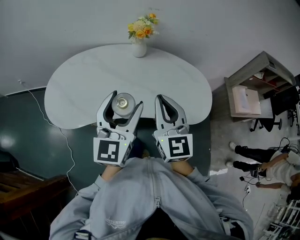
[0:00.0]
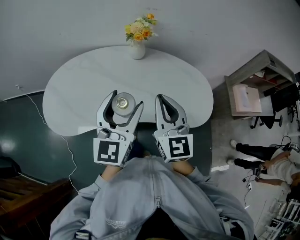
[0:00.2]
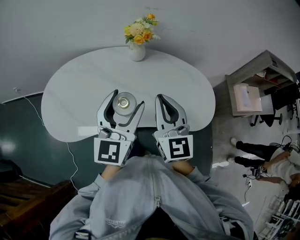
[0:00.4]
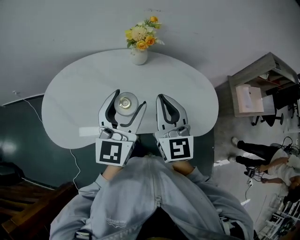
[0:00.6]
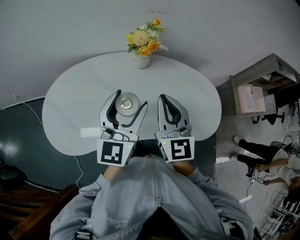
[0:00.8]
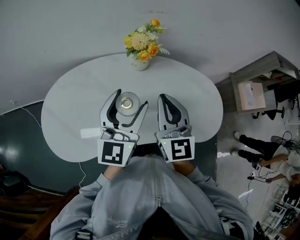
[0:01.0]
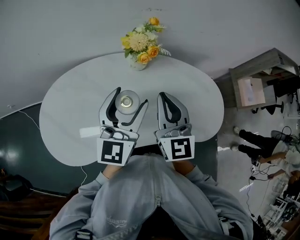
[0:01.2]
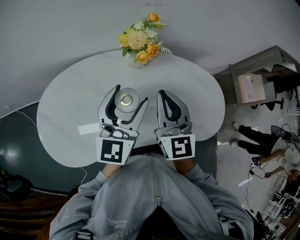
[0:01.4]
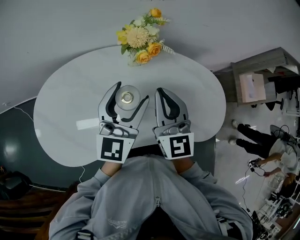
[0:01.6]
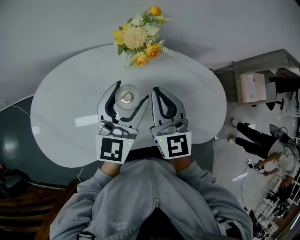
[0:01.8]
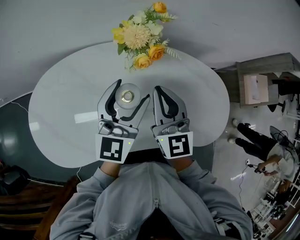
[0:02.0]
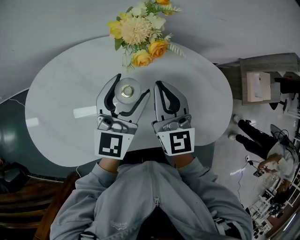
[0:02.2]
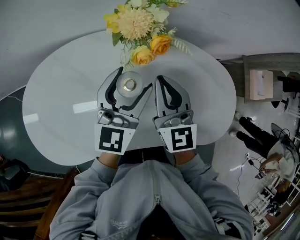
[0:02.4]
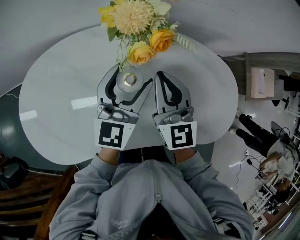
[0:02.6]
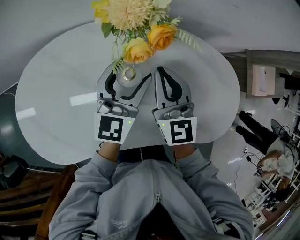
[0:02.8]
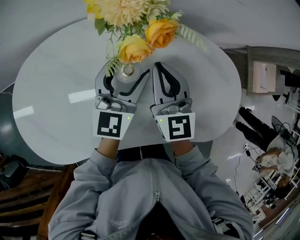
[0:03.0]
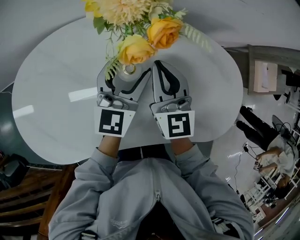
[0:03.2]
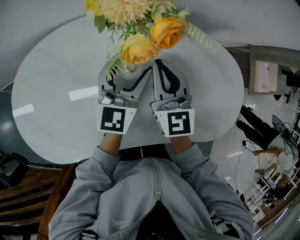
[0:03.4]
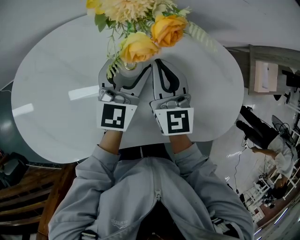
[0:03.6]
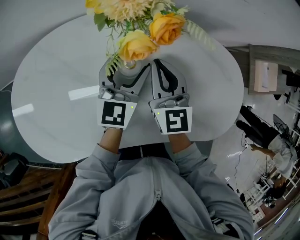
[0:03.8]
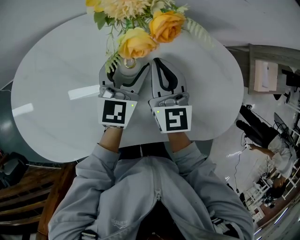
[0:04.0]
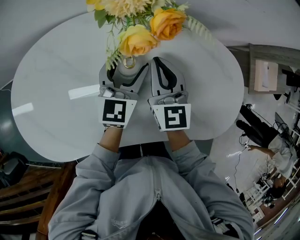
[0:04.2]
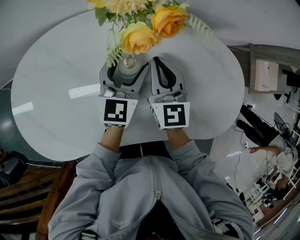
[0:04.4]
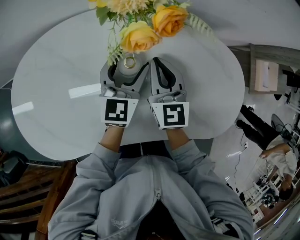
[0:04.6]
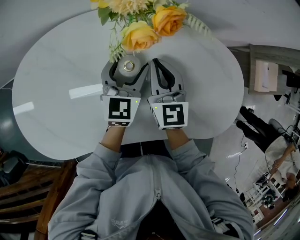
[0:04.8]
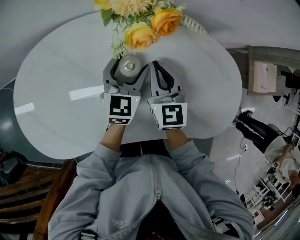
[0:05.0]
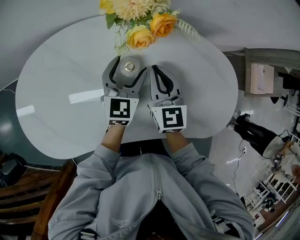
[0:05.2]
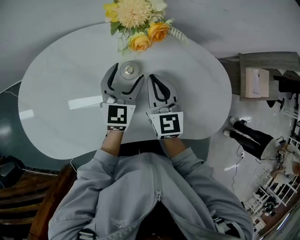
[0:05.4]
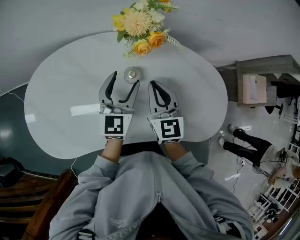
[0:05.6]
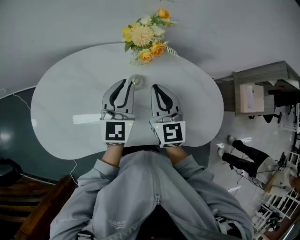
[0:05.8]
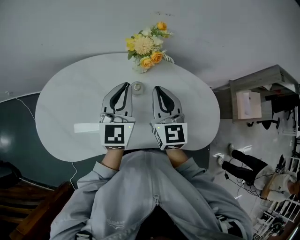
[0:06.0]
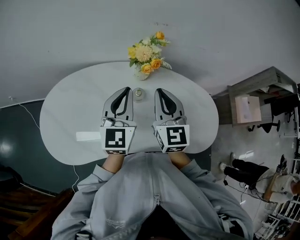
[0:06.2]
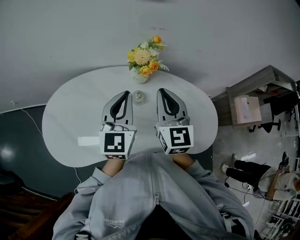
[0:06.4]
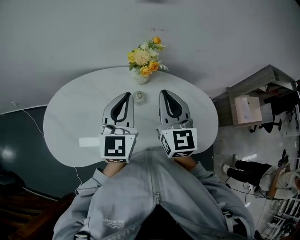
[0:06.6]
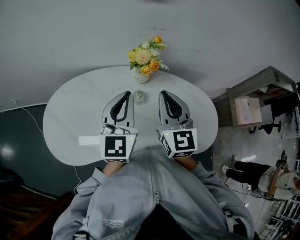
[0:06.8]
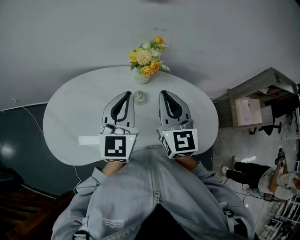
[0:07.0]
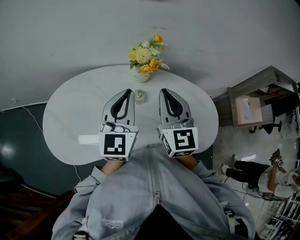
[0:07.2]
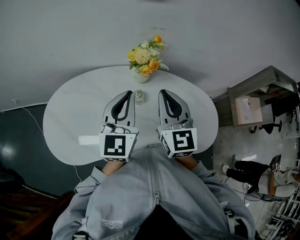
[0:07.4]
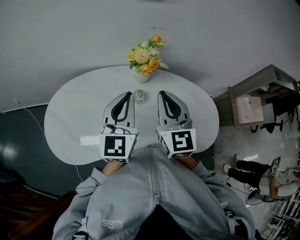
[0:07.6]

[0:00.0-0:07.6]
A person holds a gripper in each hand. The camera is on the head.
0:00.0 to 0:01.6: Both grippers move forward, about 25 cm.
0:01.6 to 0:03.0: The grippers both shift downward and forward by some 15 cm.
0:03.0 to 0:04.6: Both grippers move downward, about 5 cm.
0:04.6 to 0:06.0: The two grippers go about 20 cm upward. The left gripper closes.
0:06.0 to 0:07.6: Both grippers travel together upward, roughly 10 cm.

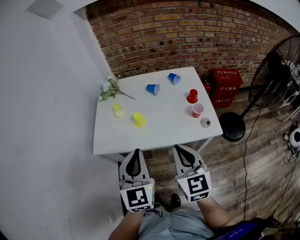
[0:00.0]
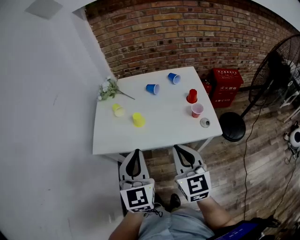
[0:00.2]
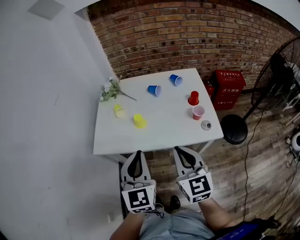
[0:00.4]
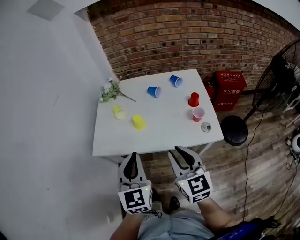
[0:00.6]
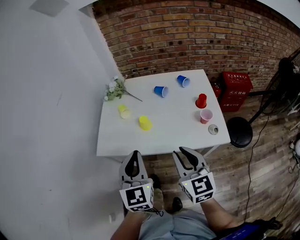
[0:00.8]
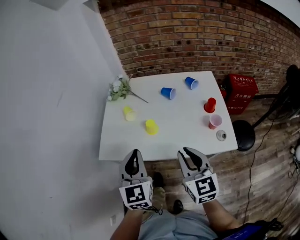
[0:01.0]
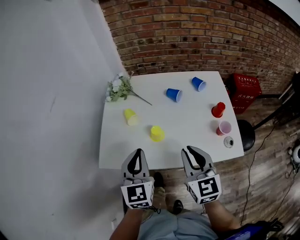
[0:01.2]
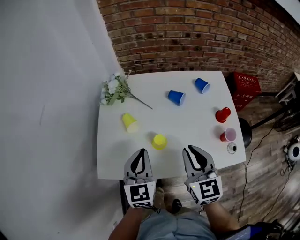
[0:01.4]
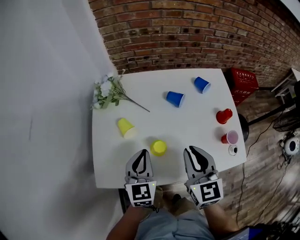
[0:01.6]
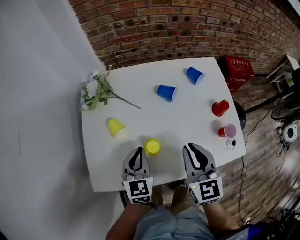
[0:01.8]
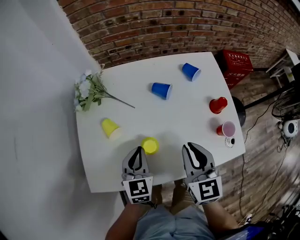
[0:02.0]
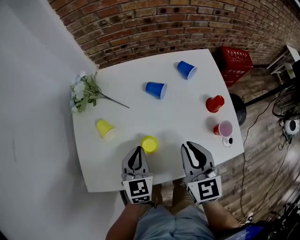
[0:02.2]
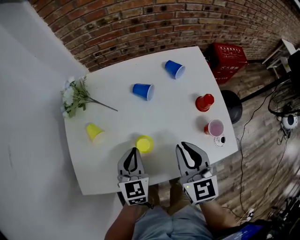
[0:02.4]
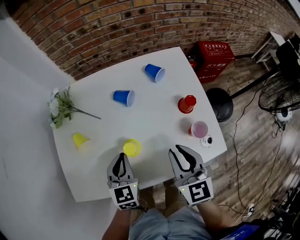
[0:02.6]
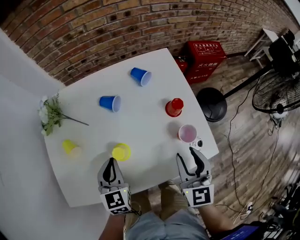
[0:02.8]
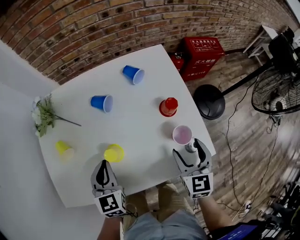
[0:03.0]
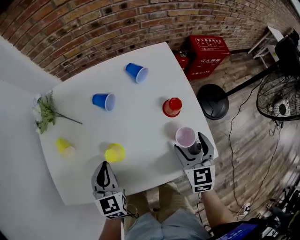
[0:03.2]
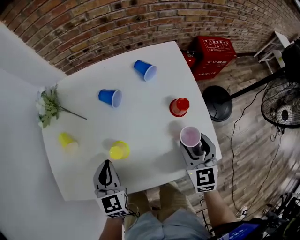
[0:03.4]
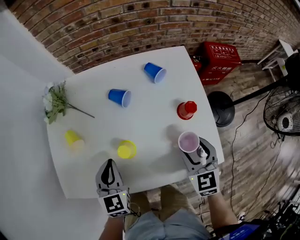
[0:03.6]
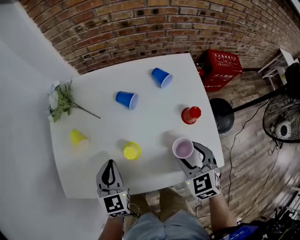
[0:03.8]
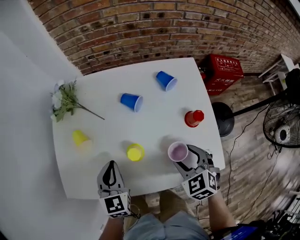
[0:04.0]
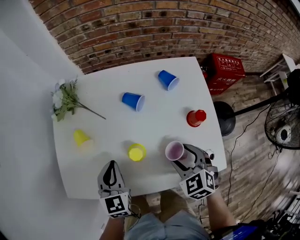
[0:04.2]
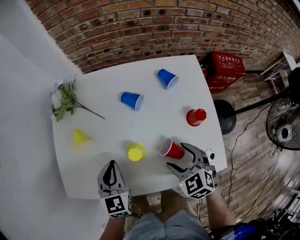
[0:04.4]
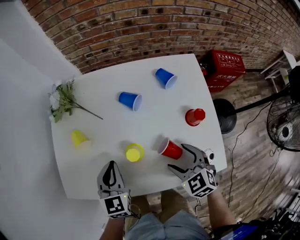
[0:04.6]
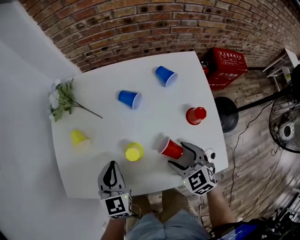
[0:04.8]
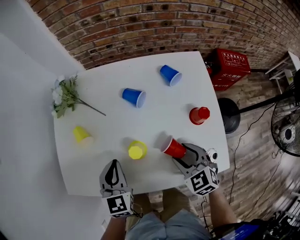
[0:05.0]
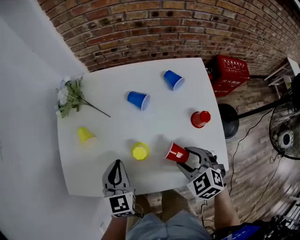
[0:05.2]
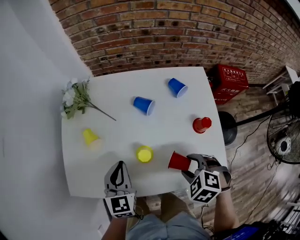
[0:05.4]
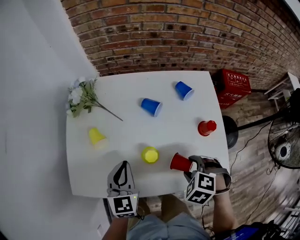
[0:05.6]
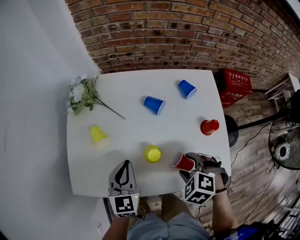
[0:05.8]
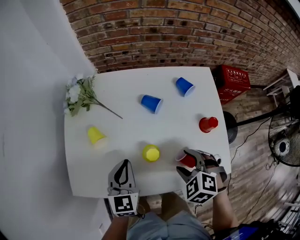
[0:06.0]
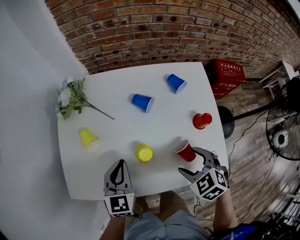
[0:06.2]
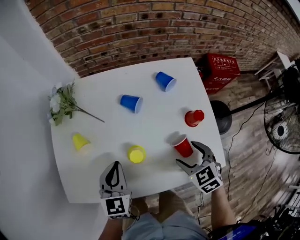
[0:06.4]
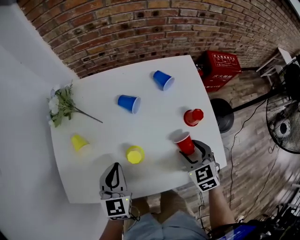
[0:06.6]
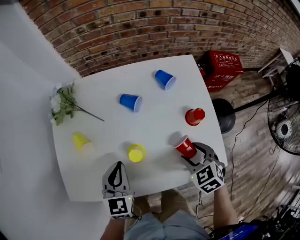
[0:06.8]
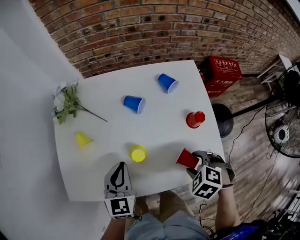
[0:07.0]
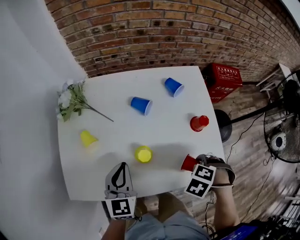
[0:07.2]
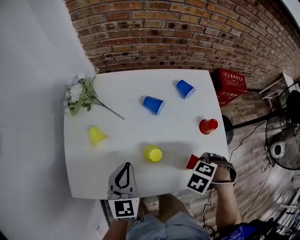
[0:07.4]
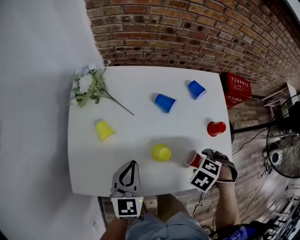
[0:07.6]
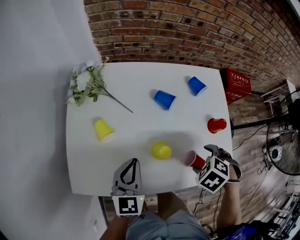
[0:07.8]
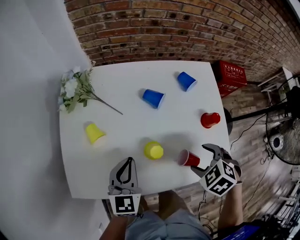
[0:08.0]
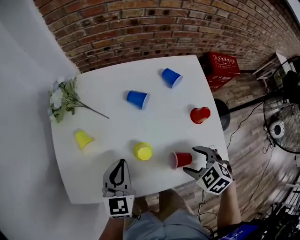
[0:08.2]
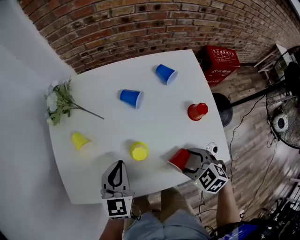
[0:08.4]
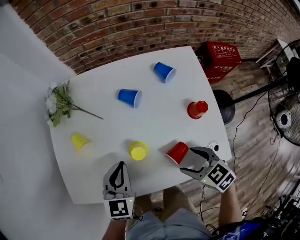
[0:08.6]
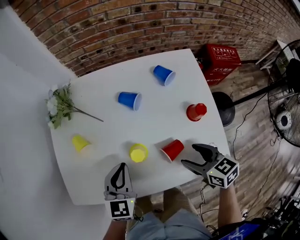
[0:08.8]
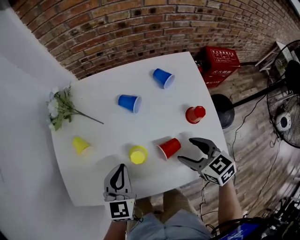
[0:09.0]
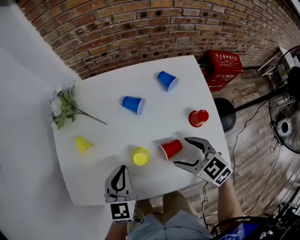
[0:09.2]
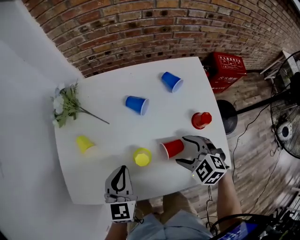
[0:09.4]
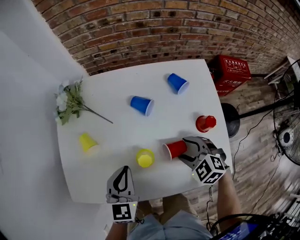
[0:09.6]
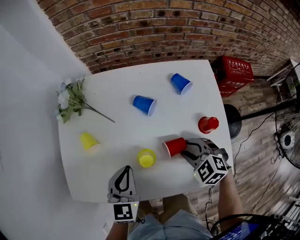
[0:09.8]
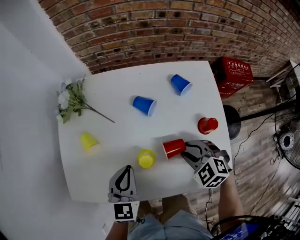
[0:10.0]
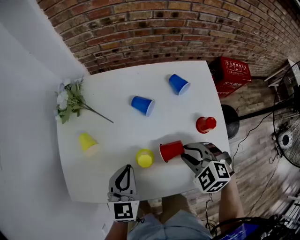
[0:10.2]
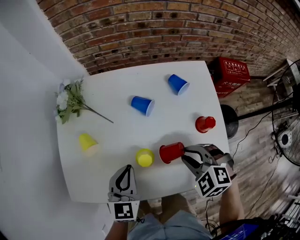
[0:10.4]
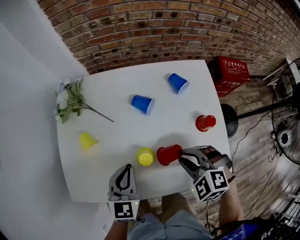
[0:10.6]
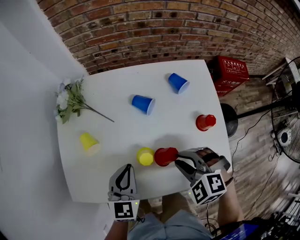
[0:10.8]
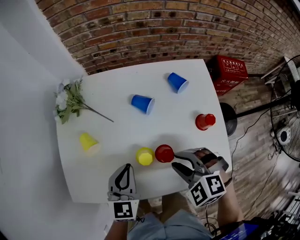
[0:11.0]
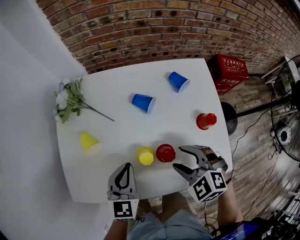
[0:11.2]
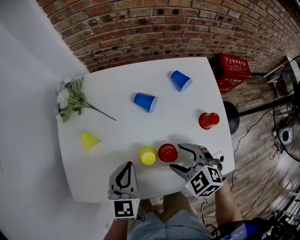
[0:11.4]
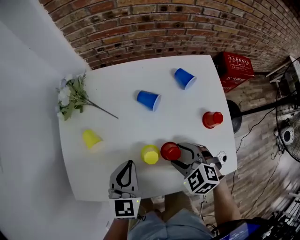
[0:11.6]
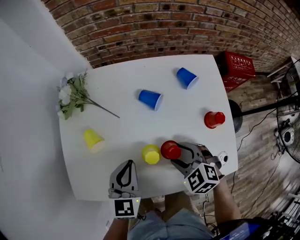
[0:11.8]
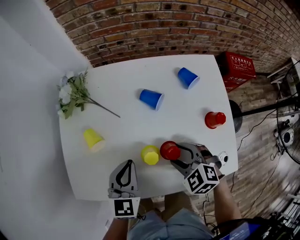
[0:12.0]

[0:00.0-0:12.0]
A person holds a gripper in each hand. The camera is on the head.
0:00.0 to 0:01.6: The right gripper moves forward, about 25 cm. The left gripper is displaced forward and downward by roughly 30 cm.
0:01.6 to 0:03.0: The left gripper shifts approximately 10 cm to the right and downward. The right gripper travels to the right and downward by roughly 30 cm, swivels about 20 degrees, and opens.
0:03.0 to 0:04.4: The left gripper is displaced to the left by some 5 cm. Meanwhile the right gripper shifts about 10 cm to the left, and turns by roughly 50 degrees.
0:04.4 to 0:06.0: The right gripper turns by some 20 degrees.
0:06.0 to 0:07.6: The right gripper swivels some 30 degrees.
0:07.6 to 0:09.0: The left gripper moves some 5 cm, while the right gripper tips its fingers upward by some 40 degrees.
0:09.0 to 0:10.4: The right gripper rotates around the line of its fingers by approximately 50 degrees, counterclockwise from behind, and closes its fingers.
0:10.4 to 0:12.0: The right gripper shifts approximately 10 cm to the left and downward, and opens its fingers.

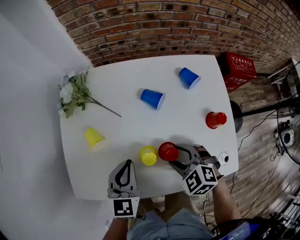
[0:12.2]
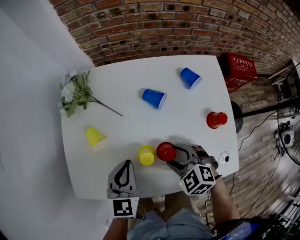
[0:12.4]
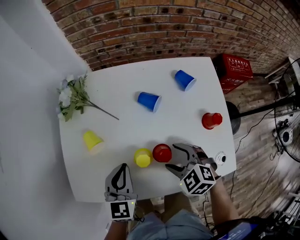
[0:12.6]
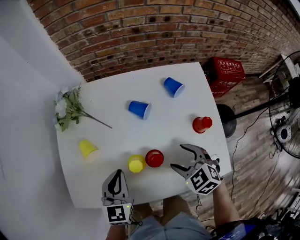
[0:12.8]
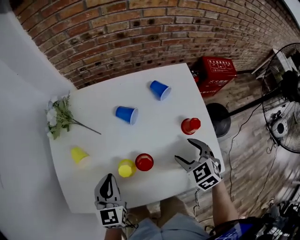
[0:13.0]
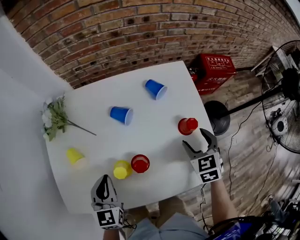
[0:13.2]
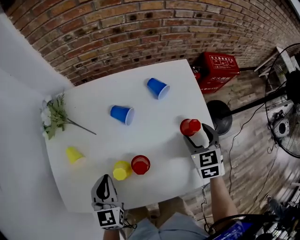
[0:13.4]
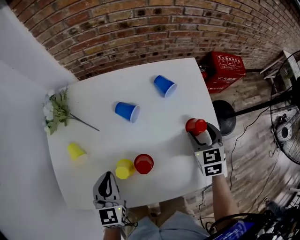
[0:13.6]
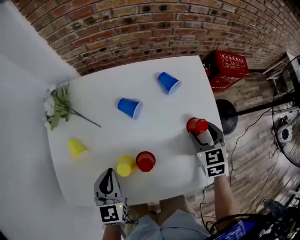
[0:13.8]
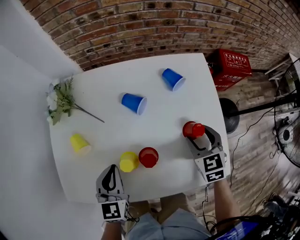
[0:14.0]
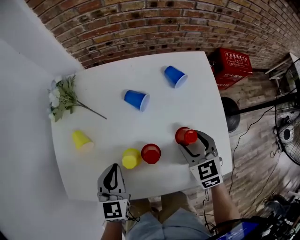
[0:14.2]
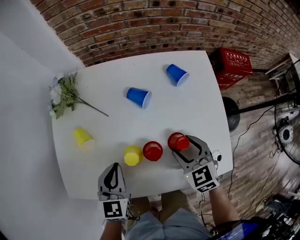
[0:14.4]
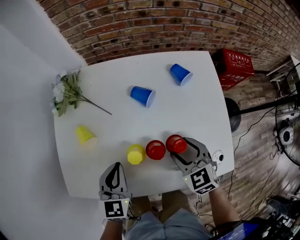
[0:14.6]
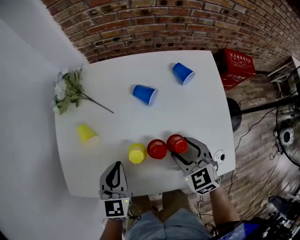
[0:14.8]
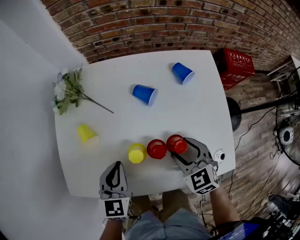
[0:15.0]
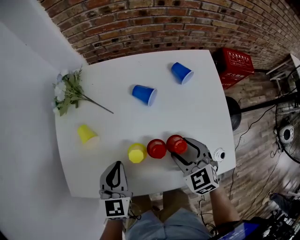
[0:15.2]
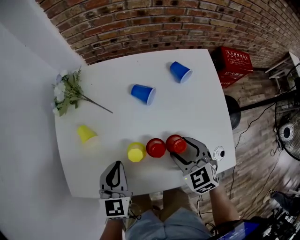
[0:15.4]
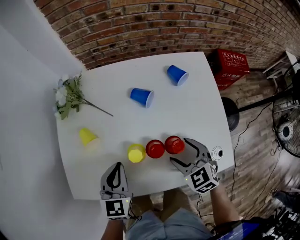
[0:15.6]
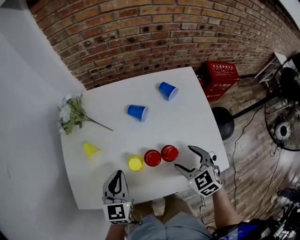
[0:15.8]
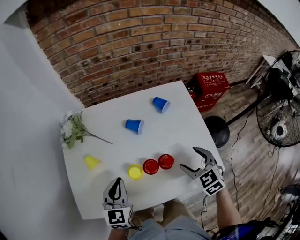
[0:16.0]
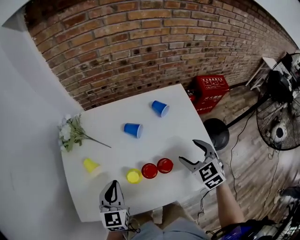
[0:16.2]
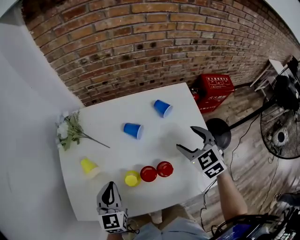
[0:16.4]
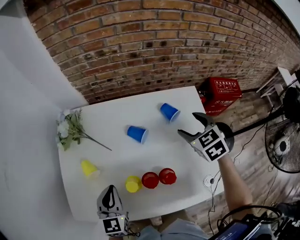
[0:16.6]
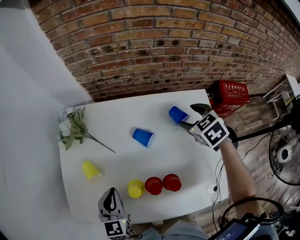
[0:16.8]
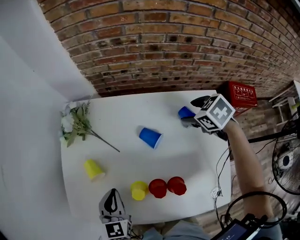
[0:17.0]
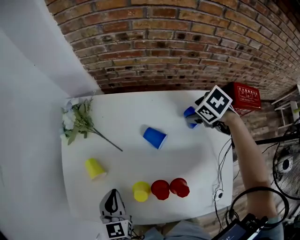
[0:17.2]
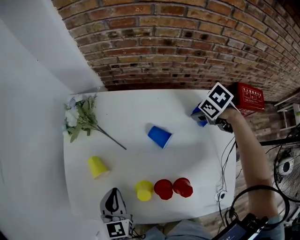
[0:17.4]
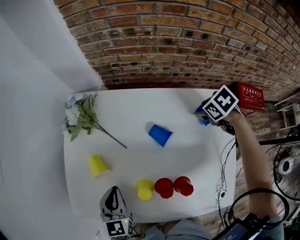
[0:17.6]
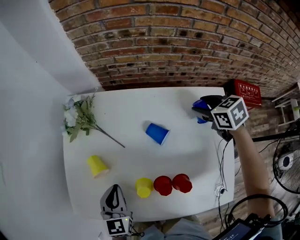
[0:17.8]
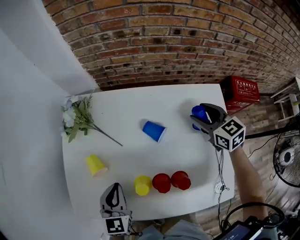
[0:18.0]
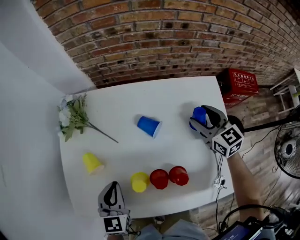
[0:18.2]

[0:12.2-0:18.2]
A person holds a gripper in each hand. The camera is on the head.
0:12.2 to 0:13.8: The right gripper shifts some 25 cm to the right and forward, and rotates some 50 degrees.
0:13.8 to 0:15.2: The right gripper travels to the left and backward by about 20 cm, and turns by approximately 20 degrees.
0:15.2 to 0:16.6: The right gripper is displaced forward, to the right and upward by some 25 cm.
0:16.6 to 0:18.2: The right gripper changes its angle by some 30 degrees.
